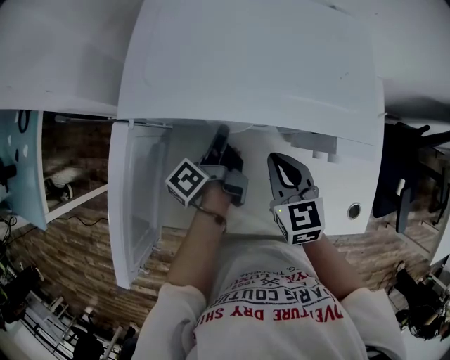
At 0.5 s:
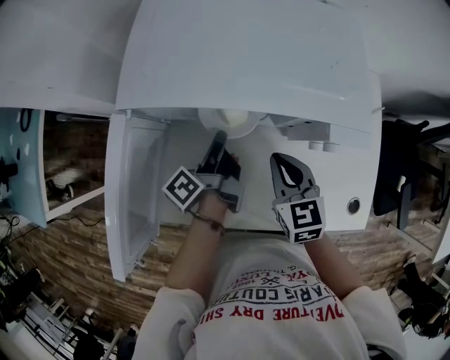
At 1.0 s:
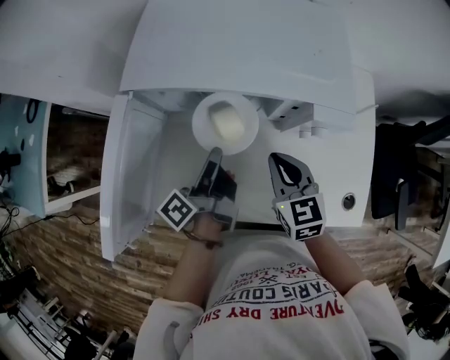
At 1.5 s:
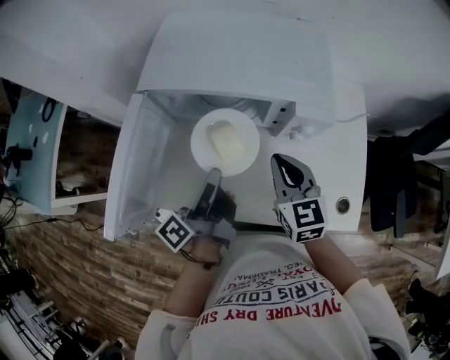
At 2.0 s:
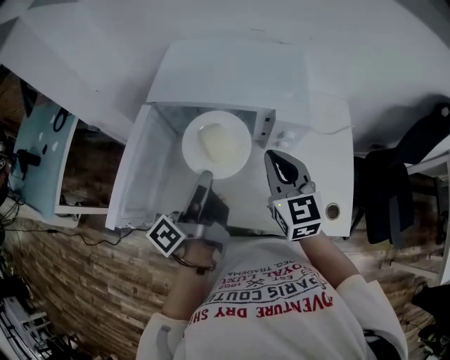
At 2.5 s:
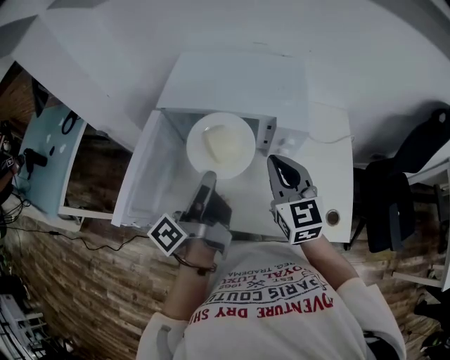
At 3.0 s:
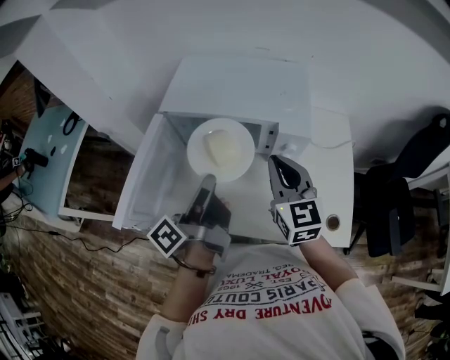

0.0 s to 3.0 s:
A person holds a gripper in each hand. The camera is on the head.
0.0 to 1.5 s: The left gripper heads backward and upward, covering roughly 20 cm. Meanwhile the right gripper is displaced upward and backward by some 10 cm.
1.5 to 3.0 s: The grippers both shift upward by roughly 10 cm.

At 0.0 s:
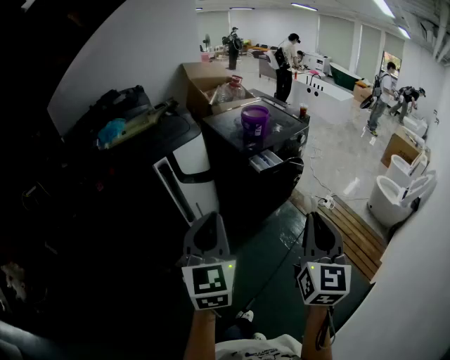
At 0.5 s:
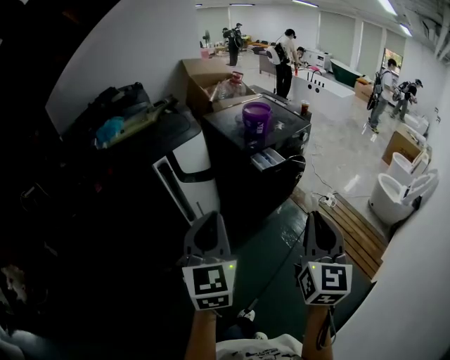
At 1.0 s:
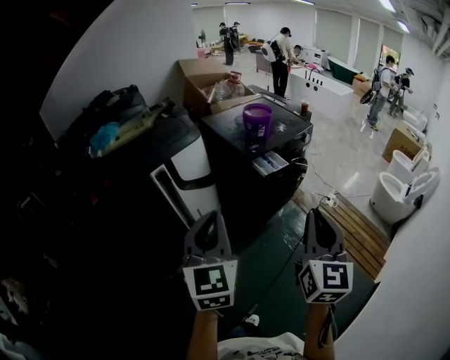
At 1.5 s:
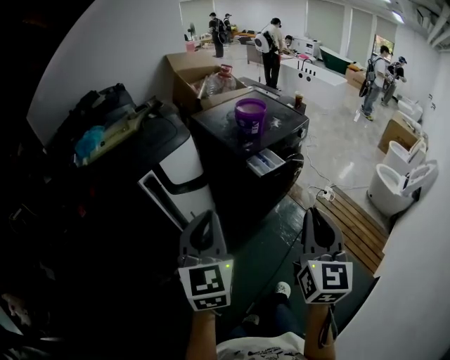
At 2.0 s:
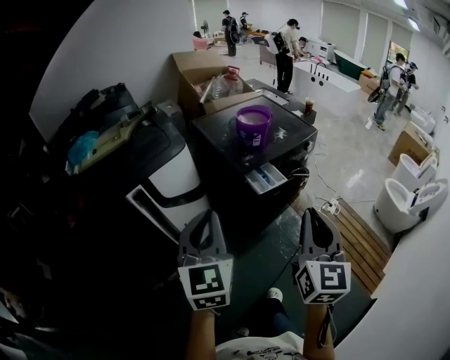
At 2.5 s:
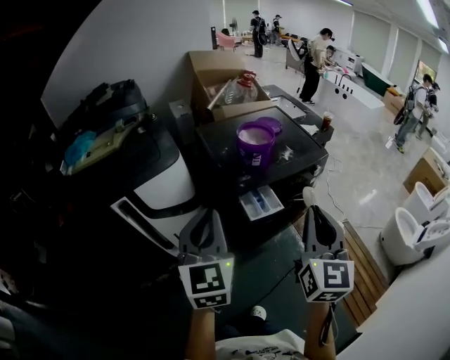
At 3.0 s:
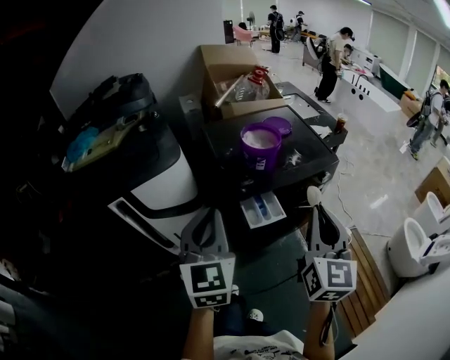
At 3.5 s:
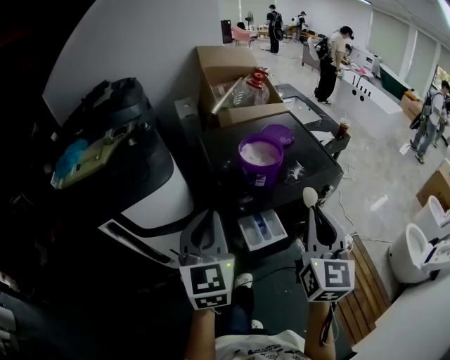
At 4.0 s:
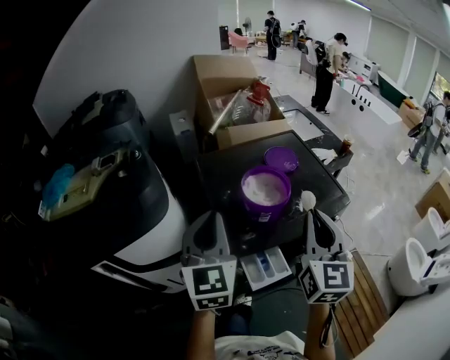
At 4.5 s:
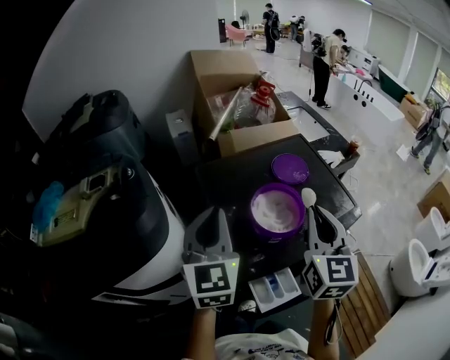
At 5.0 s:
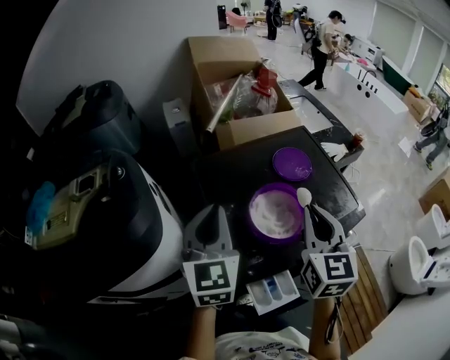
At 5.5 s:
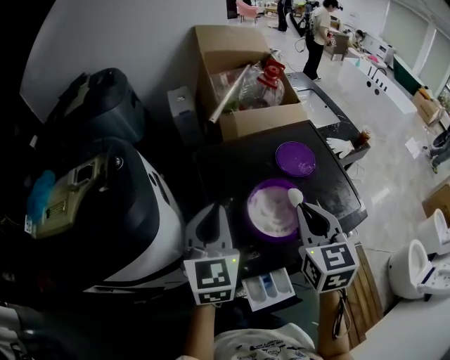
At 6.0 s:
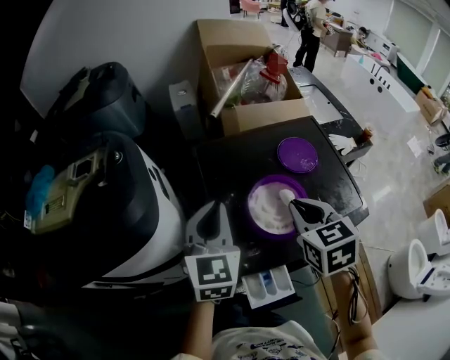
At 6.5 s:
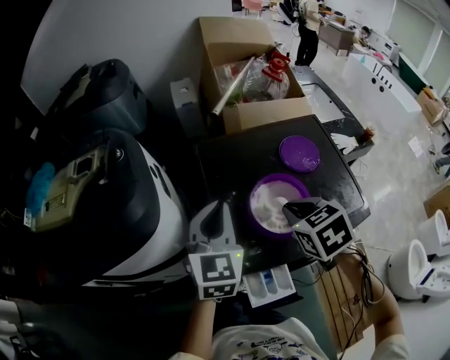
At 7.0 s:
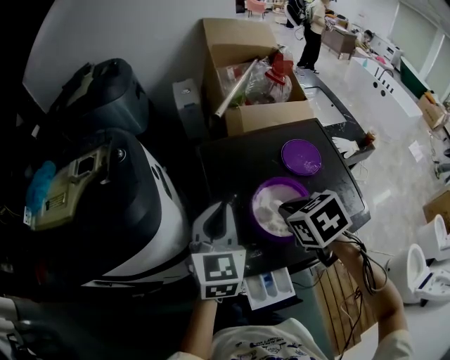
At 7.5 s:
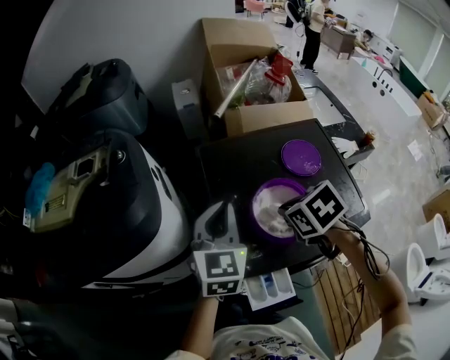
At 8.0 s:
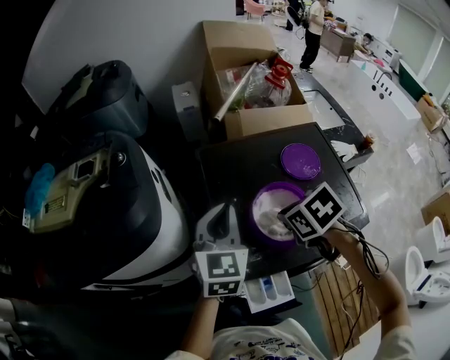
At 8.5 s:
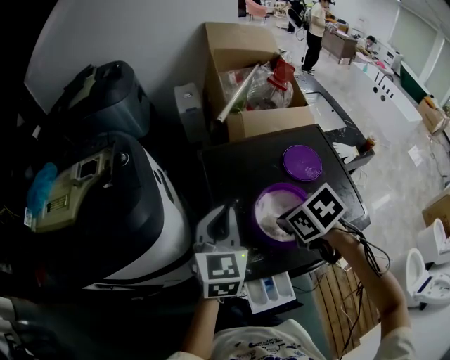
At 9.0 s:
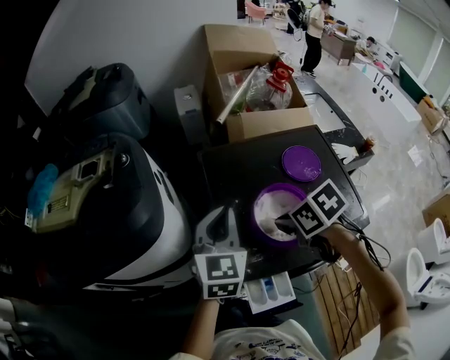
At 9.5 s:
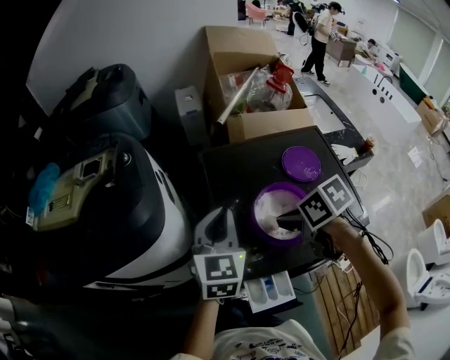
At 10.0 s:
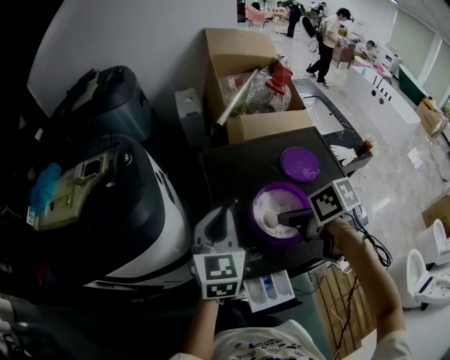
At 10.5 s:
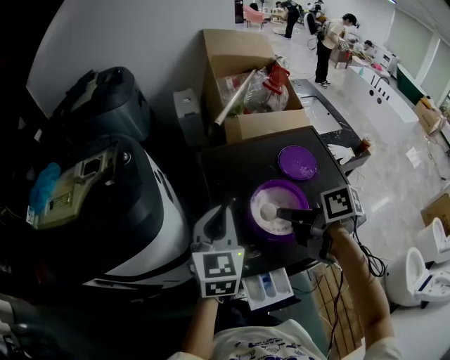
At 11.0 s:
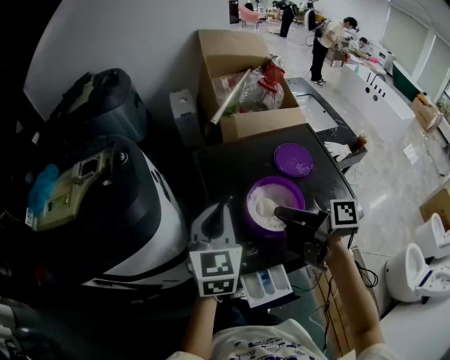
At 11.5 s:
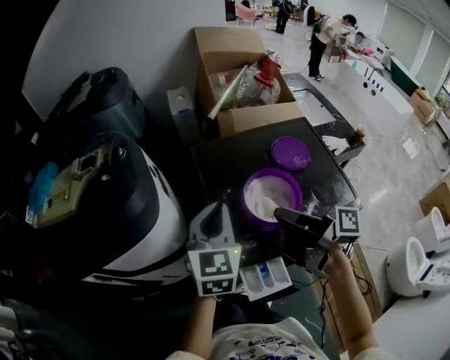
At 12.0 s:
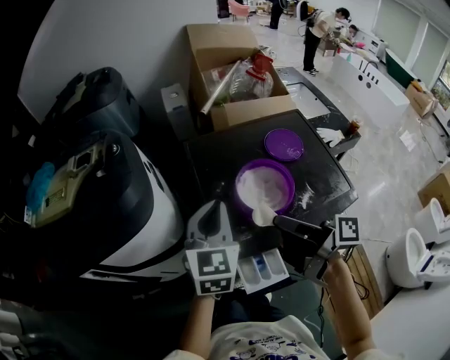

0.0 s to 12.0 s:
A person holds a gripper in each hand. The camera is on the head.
0.0 to 2.0 s: Both grippers move forward, some 25 cm.
2.0 to 4.0 s: The two grippers go about 40 cm forward.
4.0 to 6.0 s: Both grippers move forward and downward, roughly 15 cm. The right gripper points its fingers some 40 degrees further downward.
6.0 to 8.0 s: The right gripper goes some 5 cm downward, and rotates approximately 40 degrees.
8.0 to 10.0 s: The right gripper changes its angle by about 40 degrees.
10.0 to 12.0 s: The right gripper shifts some 10 cm backward, and points its fingers roughly 50 degrees further upward. Meanwhile the left gripper shifts some 5 cm backward.

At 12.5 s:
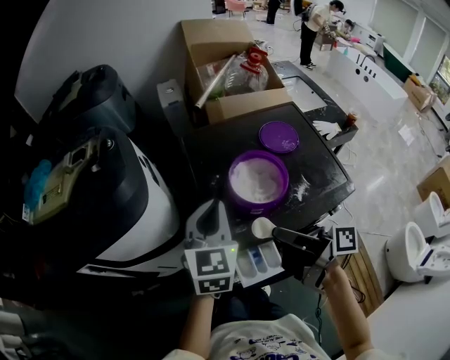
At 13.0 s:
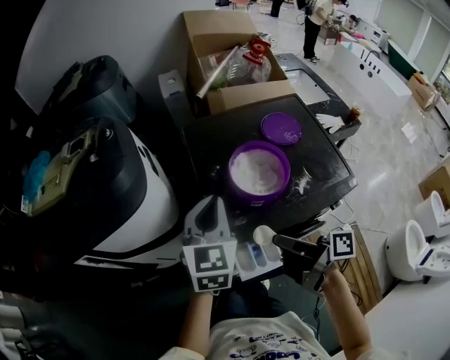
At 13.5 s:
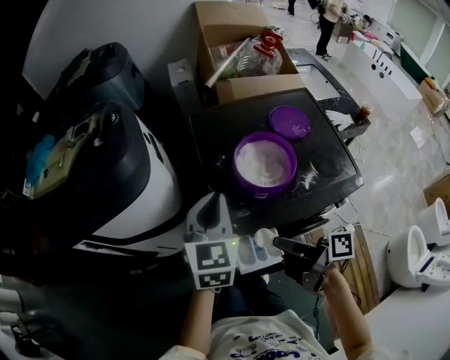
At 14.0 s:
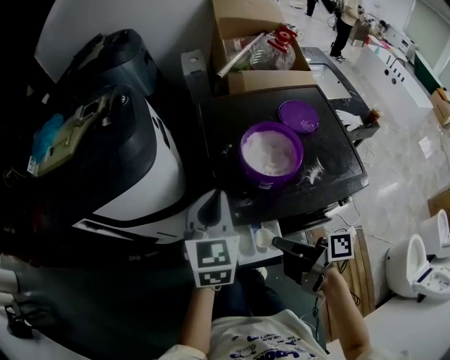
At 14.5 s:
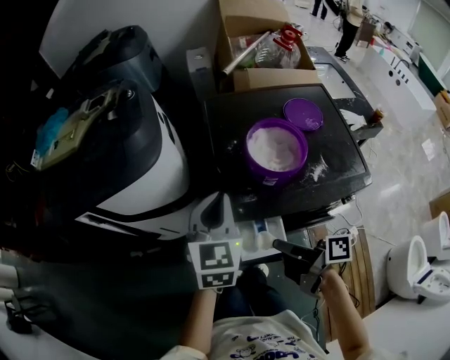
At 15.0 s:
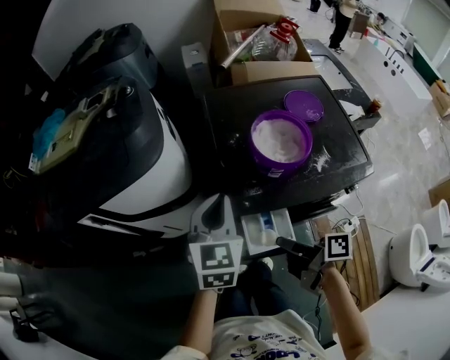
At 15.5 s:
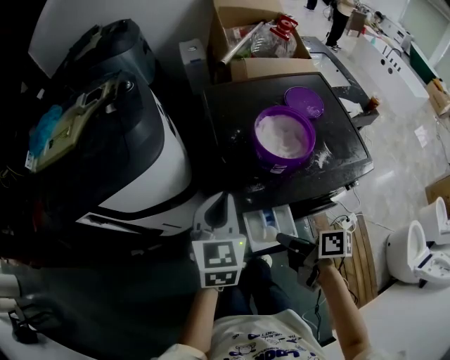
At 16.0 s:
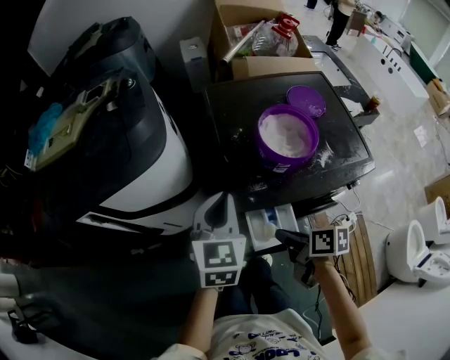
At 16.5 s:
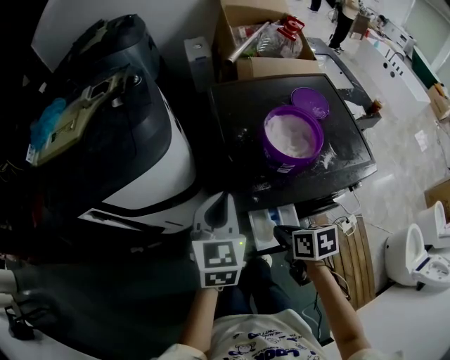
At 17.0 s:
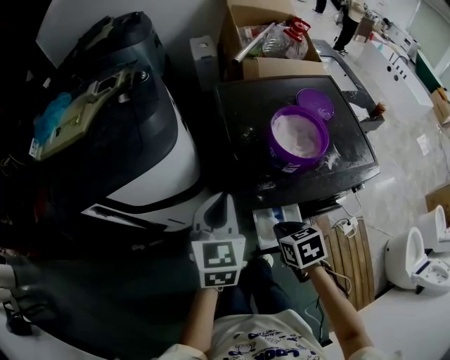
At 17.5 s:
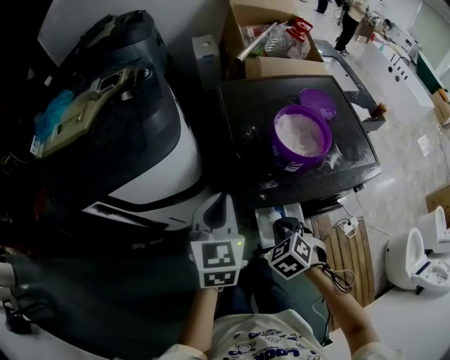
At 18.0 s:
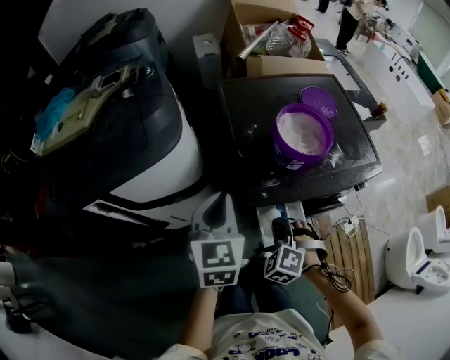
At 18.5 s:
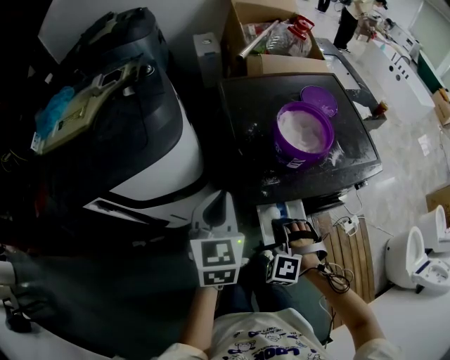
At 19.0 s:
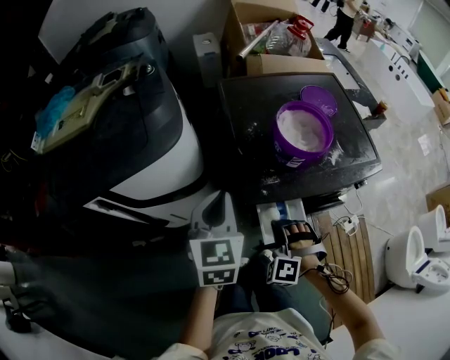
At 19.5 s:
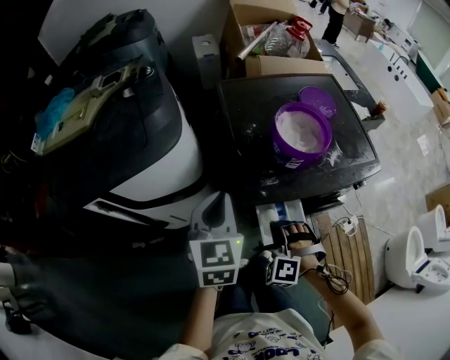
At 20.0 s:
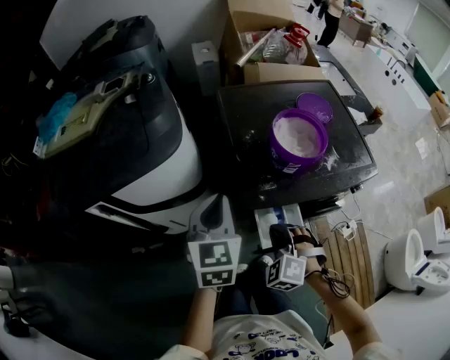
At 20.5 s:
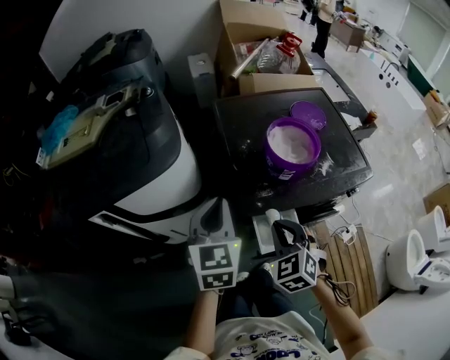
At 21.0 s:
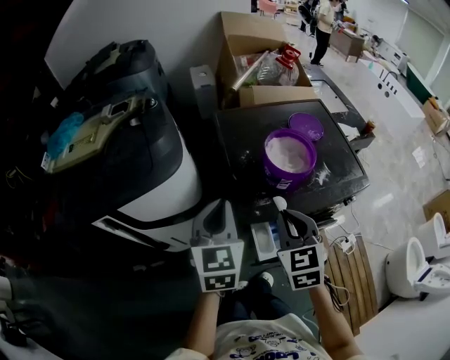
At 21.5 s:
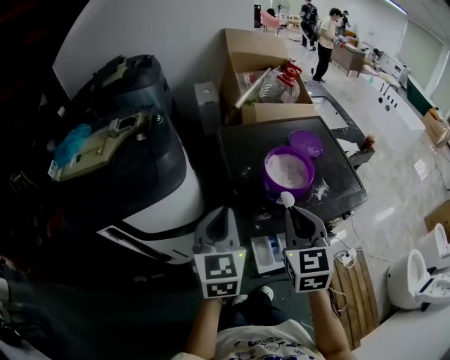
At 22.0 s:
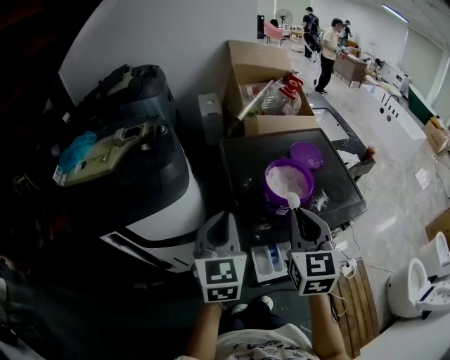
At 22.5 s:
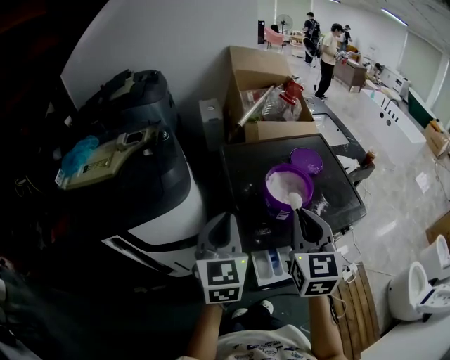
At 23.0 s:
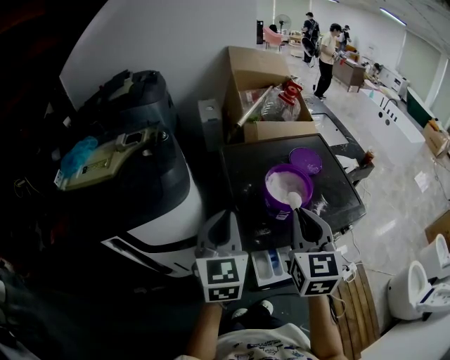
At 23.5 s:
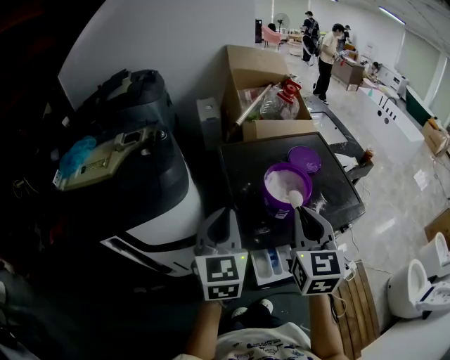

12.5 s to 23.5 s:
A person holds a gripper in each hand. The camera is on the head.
12.5 to 14.5 s: The left gripper heads backward, covering some 5 cm, while the right gripper shifts some 15 cm downward and backward.
14.5 to 16.0 s: The right gripper goes approximately 5 cm downward, and changes its angle by approximately 30 degrees.
16.0 to 18.0 s: The right gripper ends up roughly 5 cm from where it was, and twists some 100 degrees counterclockwise, seen from behind.
18.0 to 20.0 s: The grippers move only a little.
20.0 to 21.5 s: The right gripper travels upward by approximately 20 cm, and rolls clockwise, seen from behind, by about 50 degrees. Meanwhile the left gripper goes roughly 5 cm upward.
21.5 to 23.5 s: The right gripper is displaced upward by roughly 5 cm.

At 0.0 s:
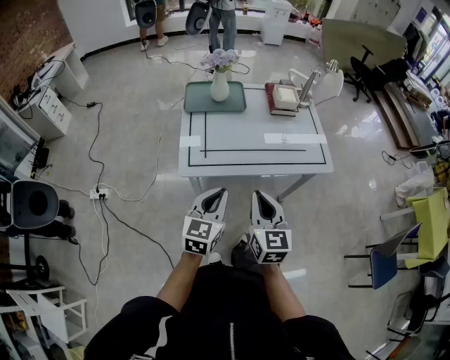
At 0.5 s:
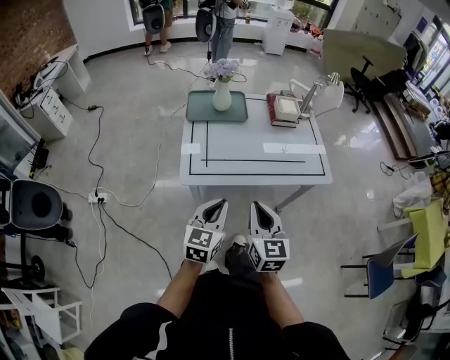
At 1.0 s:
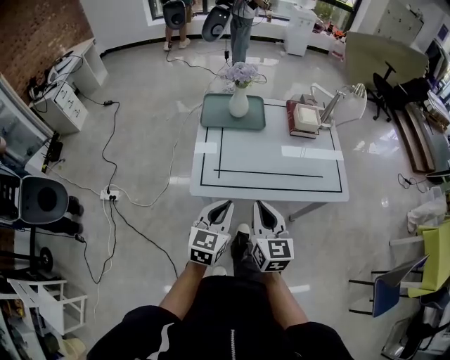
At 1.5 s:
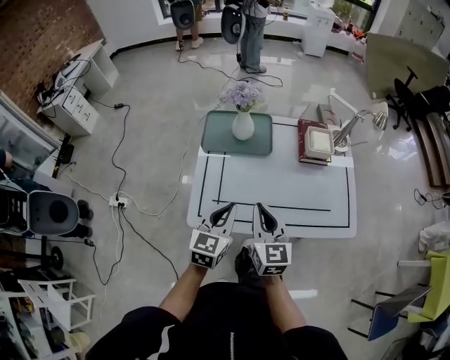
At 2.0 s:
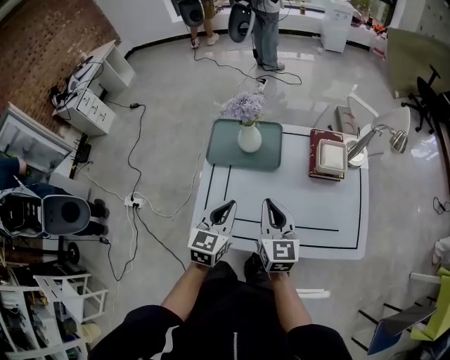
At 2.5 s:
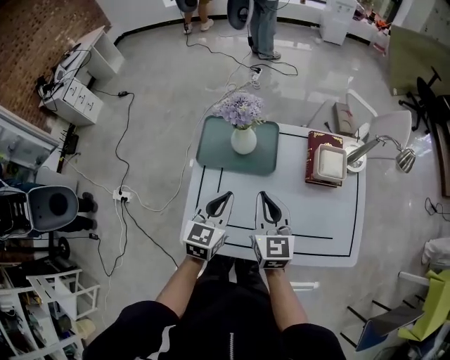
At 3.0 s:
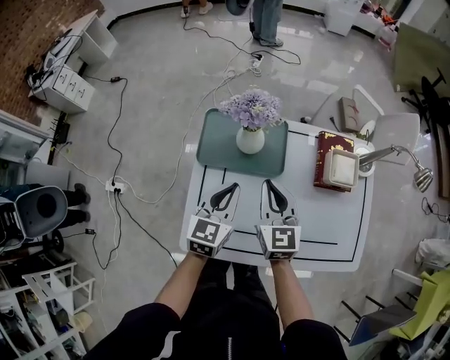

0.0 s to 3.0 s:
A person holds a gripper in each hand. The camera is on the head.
0.0 to 1.5 s: Both grippers move forward, roughly 25 cm.
1.5 to 3.0 s: The grippers both shift forward by some 25 cm.
